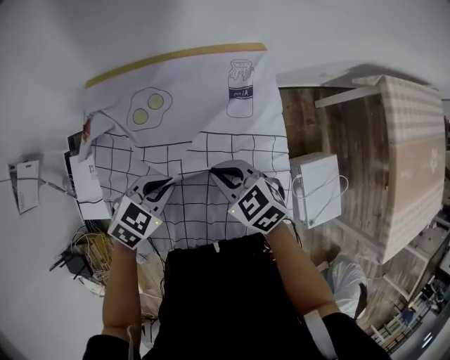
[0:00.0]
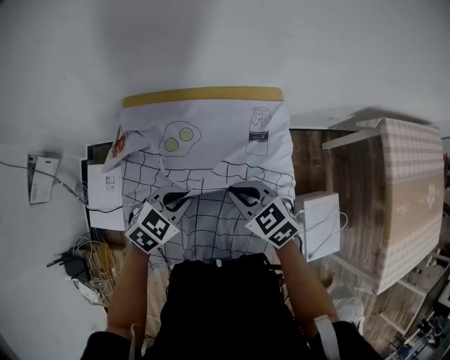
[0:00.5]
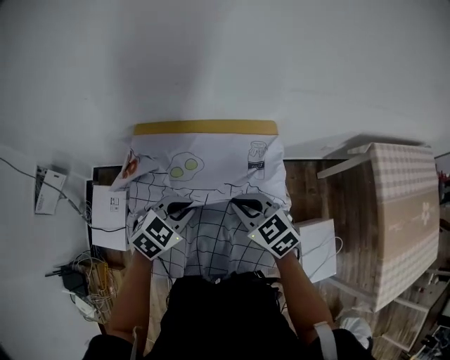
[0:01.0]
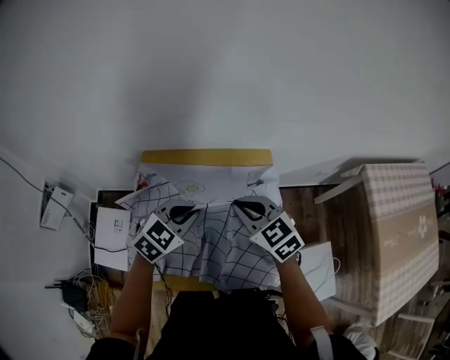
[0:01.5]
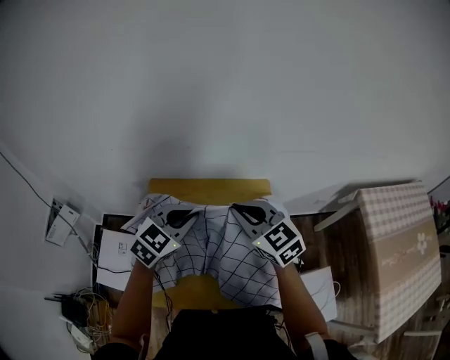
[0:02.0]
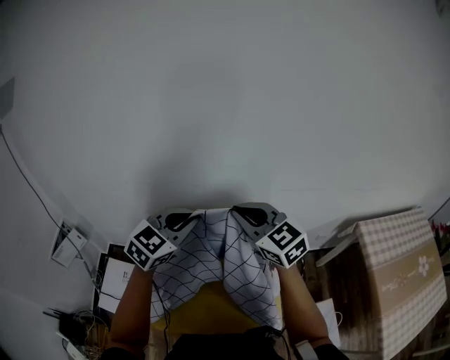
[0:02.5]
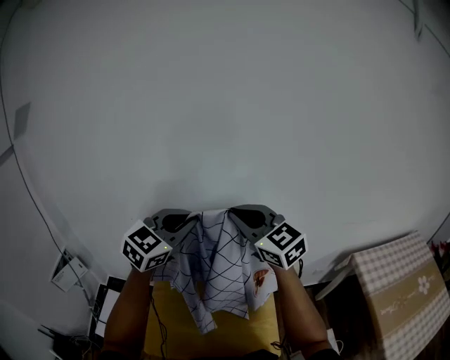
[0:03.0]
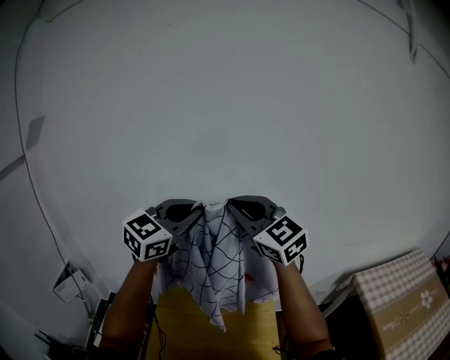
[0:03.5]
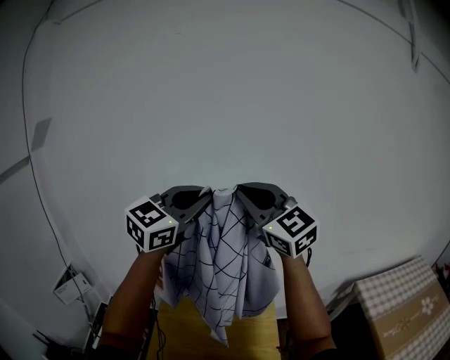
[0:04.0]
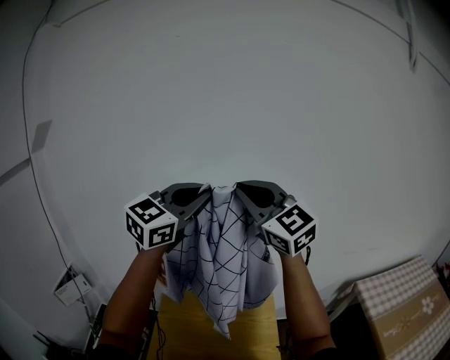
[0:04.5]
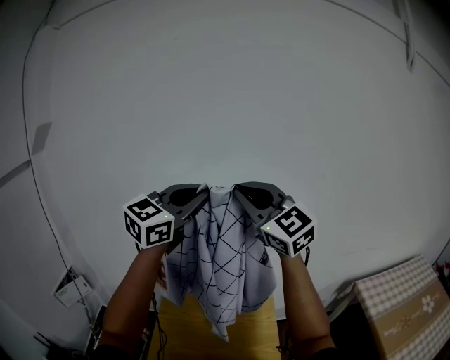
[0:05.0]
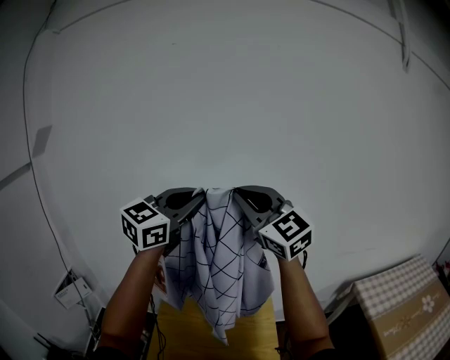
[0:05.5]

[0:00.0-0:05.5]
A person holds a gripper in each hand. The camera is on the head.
0:00.0 to 0:02.0: The grippers both shift upward by approximately 25 cm. The right gripper turns by some 30 degrees. The left gripper turns by some 30 degrees.
0:02.0 to 0:03.5: The grippers both shift upward by roughly 35 cm. The right gripper turns by roughly 30 degrees; the left gripper turns by some 30 degrees.
0:03.5 to 0:05.5: The grippers both shift upward by roughly 10 cm.

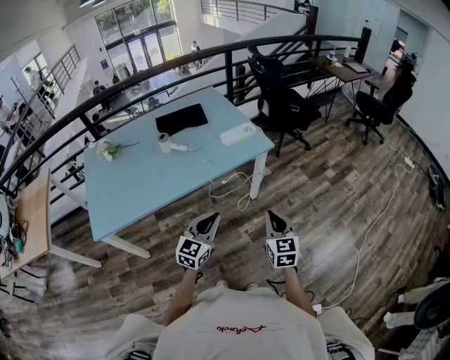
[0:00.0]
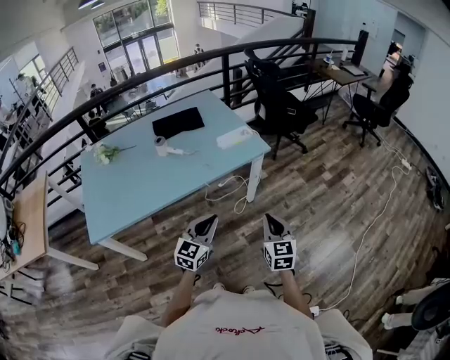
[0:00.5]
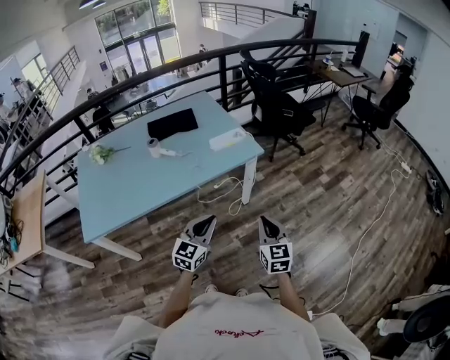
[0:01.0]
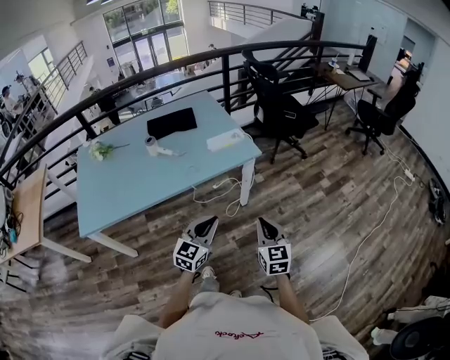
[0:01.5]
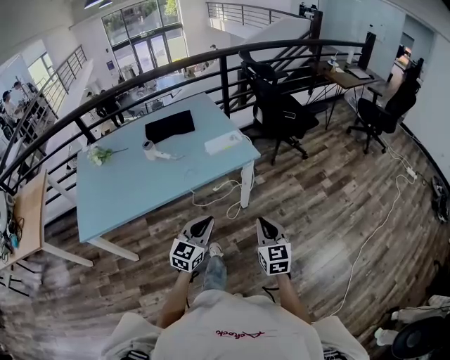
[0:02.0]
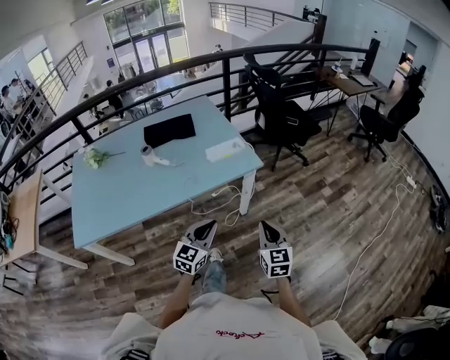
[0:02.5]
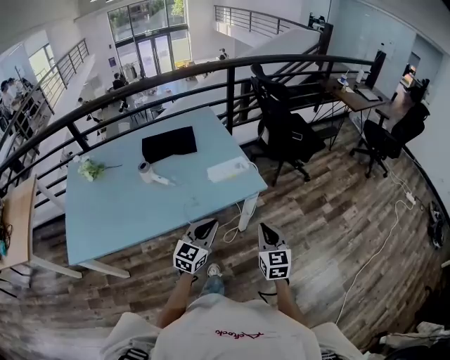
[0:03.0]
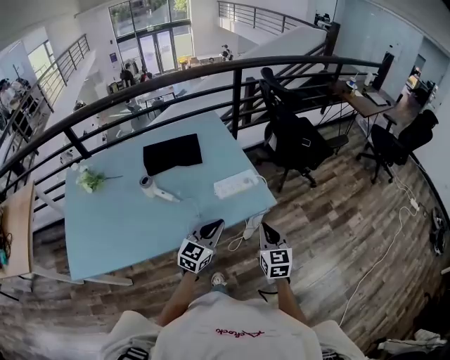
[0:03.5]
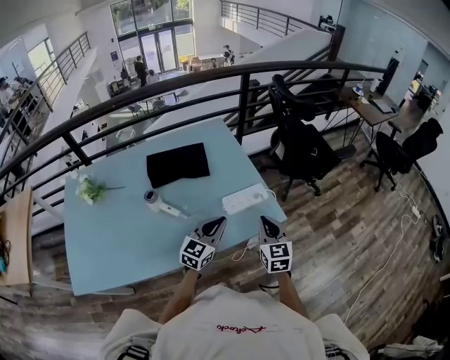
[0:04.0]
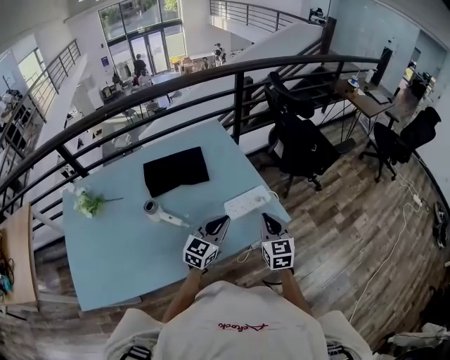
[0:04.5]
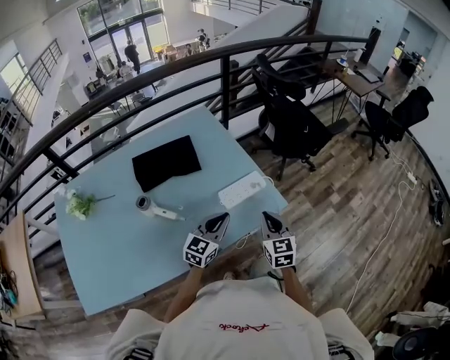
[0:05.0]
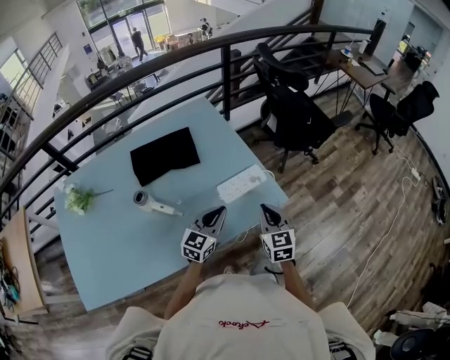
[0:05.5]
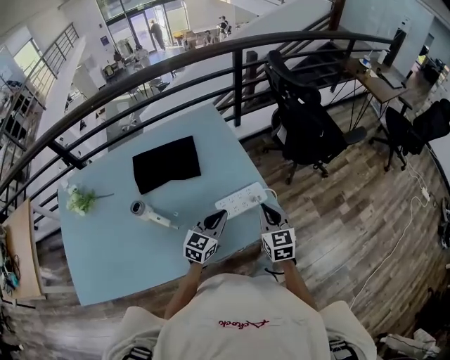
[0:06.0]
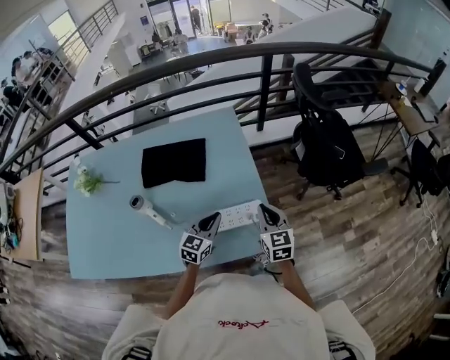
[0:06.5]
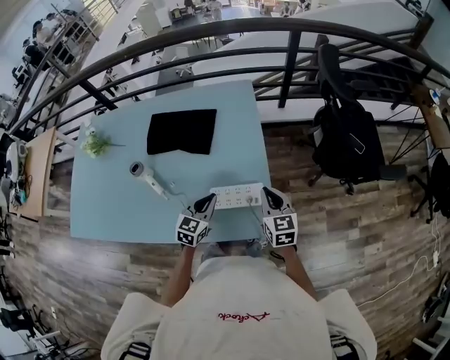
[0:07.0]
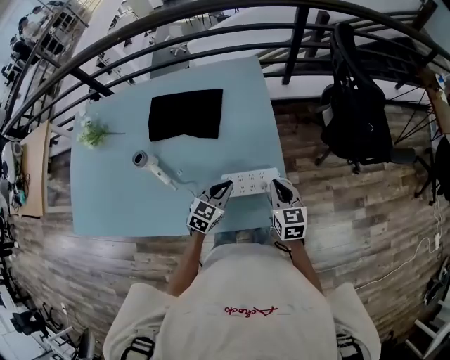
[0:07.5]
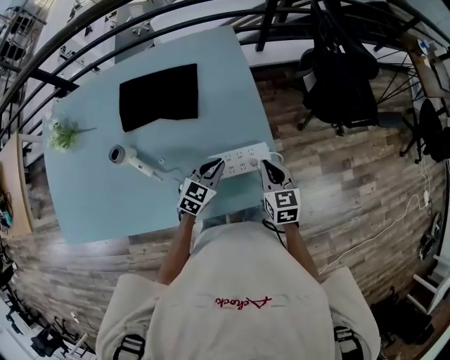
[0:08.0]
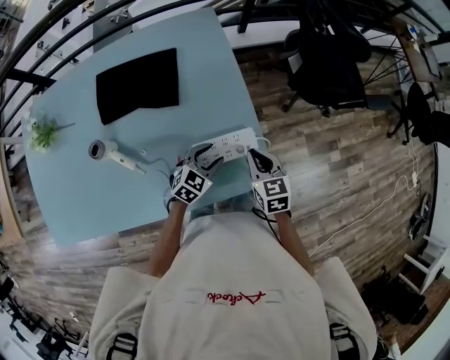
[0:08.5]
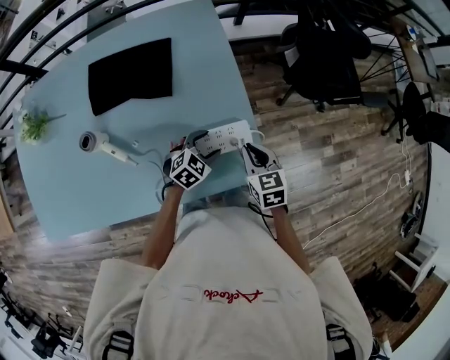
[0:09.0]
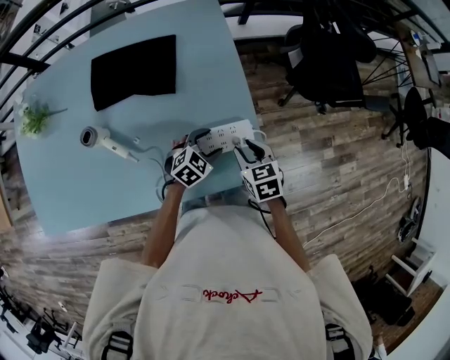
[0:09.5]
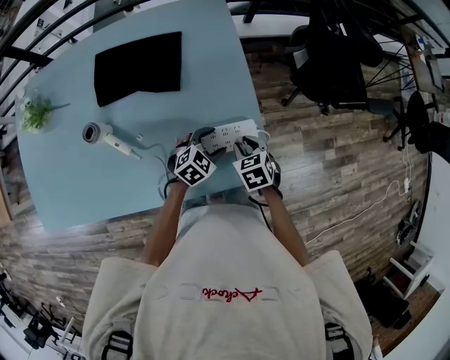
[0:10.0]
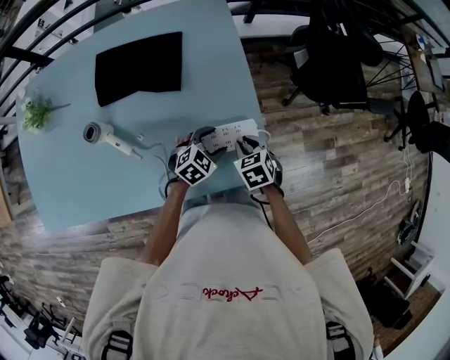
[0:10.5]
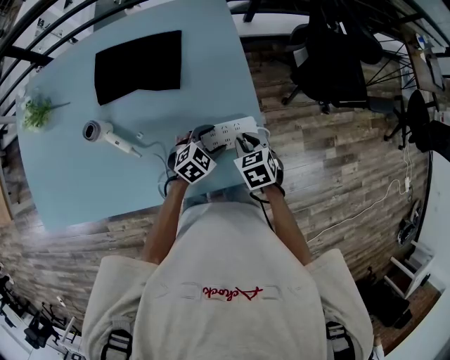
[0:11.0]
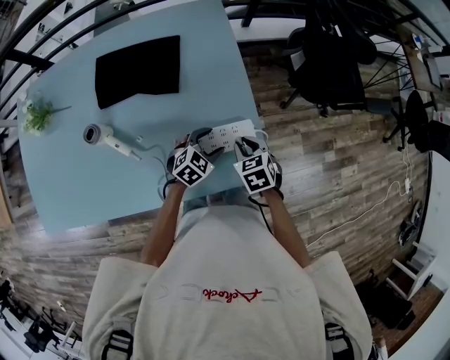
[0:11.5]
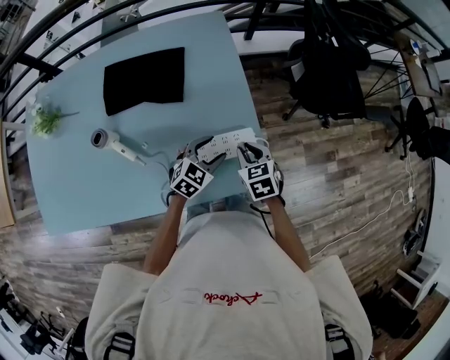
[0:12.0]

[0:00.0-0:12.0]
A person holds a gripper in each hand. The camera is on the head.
0:00.0 to 0:02.0: Both grippers move to the right, some 10 cm.
0:02.0 to 0:04.0: The left gripper is displaced forward by roughly 35 cm. The right gripper shifts about 40 cm forward and to the left.
0:04.0 to 0:06.0: Both grippers move forward and downward, about 15 cm.
0:06.0 to 0:08.0: The right gripper goes about 15 cm forward and downward; the left gripper travels downward and forward by approximately 15 cm.
0:08.0 to 0:10.0: The left gripper moves downward and to the right, some 5 cm, rotates some 20 degrees, and opens; the right gripper heads downward, covering some 10 cm, changes its angle by about 30 degrees, and opens its fingers.
0:10.0 to 0:12.0: The left gripper shifts approximately 5 cm upward.

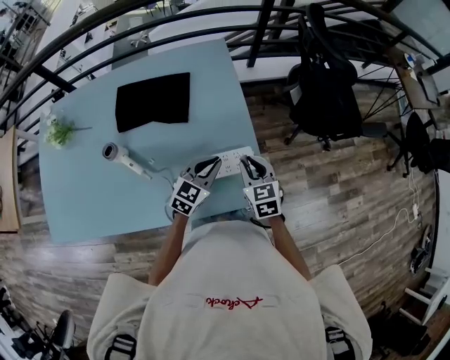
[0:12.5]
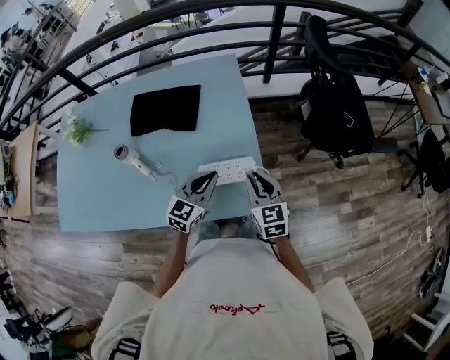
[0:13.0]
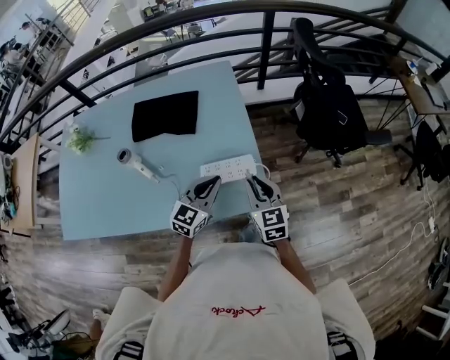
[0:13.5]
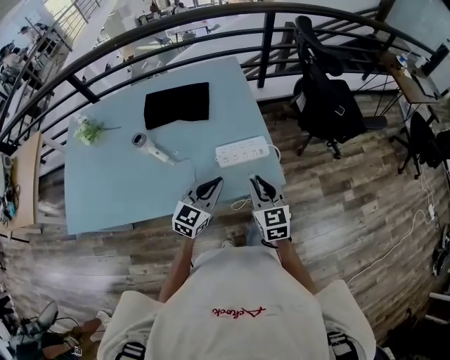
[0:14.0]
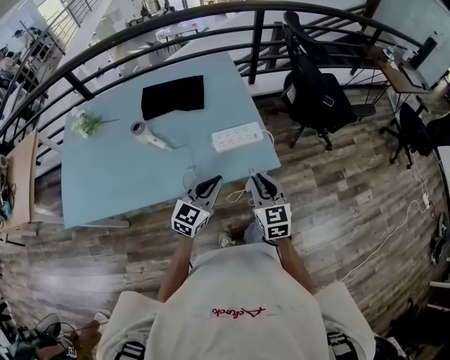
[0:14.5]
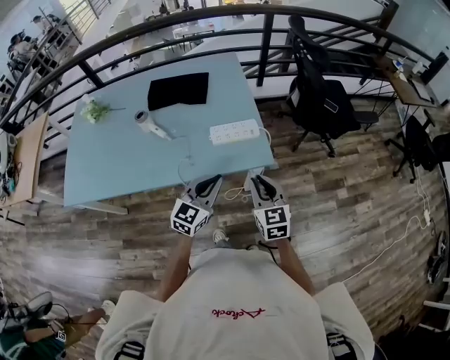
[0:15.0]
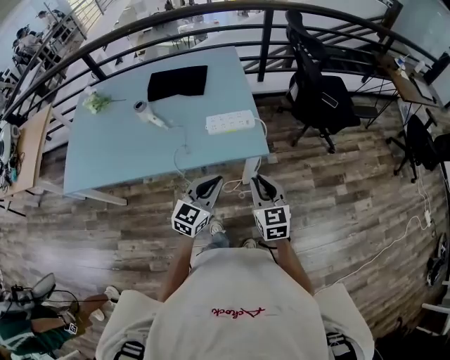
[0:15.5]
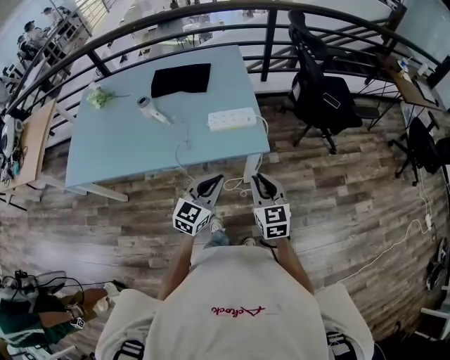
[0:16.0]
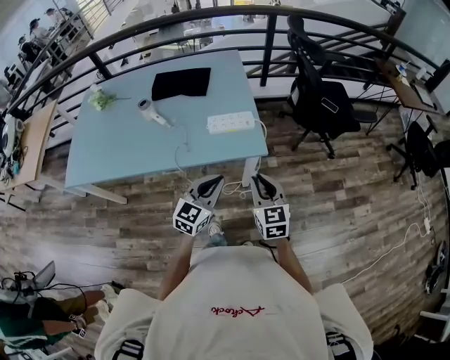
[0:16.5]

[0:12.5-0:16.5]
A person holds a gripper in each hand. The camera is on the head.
0:12.5 to 0:14.5: The two grippers go roughly 25 cm backward.
0:14.5 to 0:16.5: The left gripper heads backward and to the right, covering approximately 15 cm; the right gripper moves to the right and backward, roughly 15 cm.

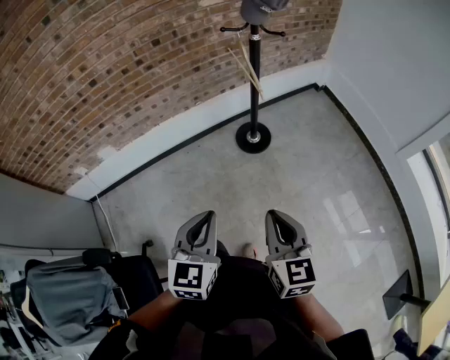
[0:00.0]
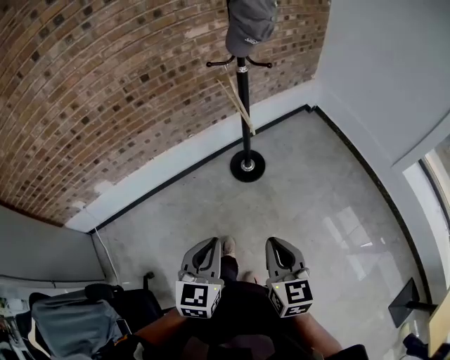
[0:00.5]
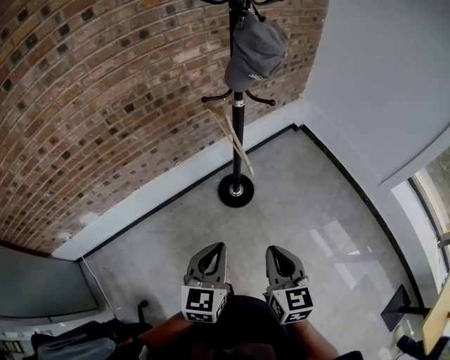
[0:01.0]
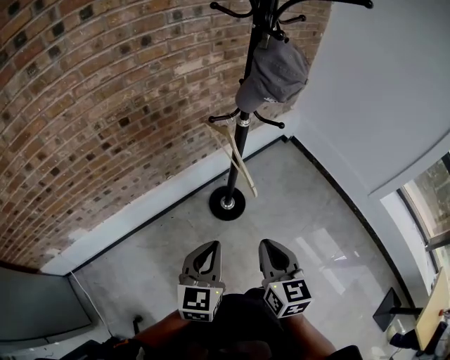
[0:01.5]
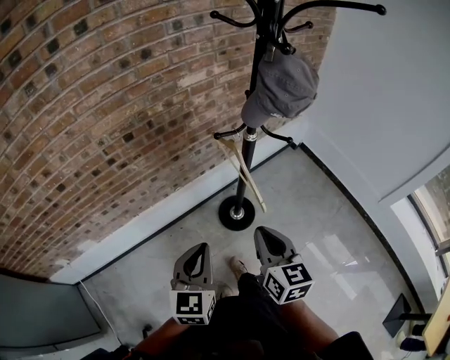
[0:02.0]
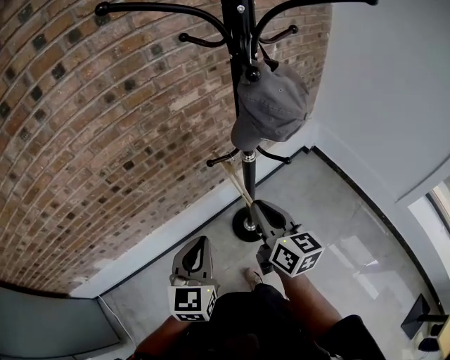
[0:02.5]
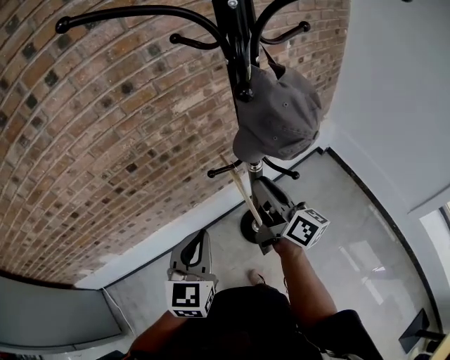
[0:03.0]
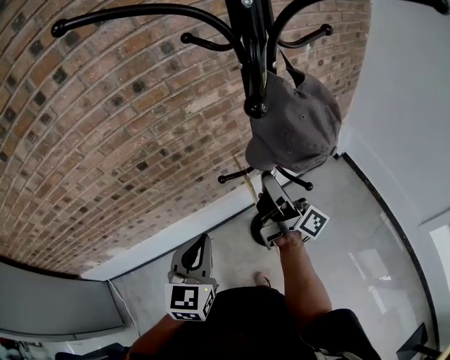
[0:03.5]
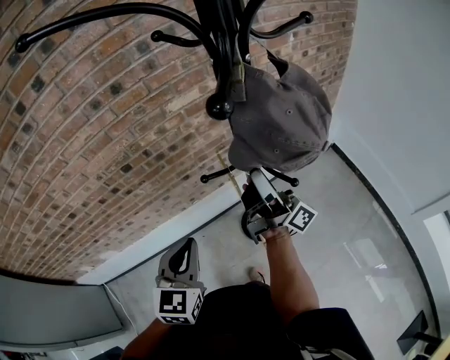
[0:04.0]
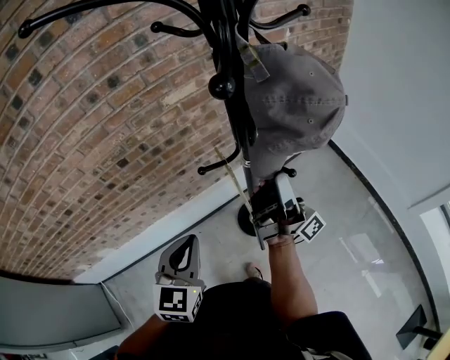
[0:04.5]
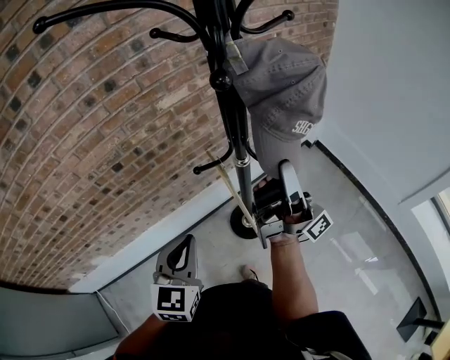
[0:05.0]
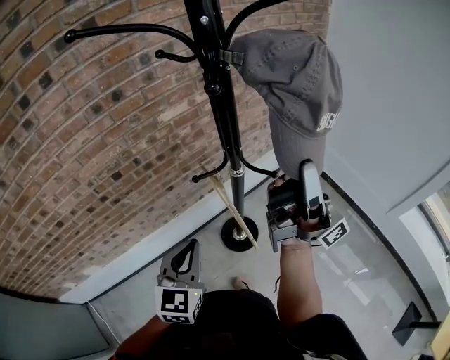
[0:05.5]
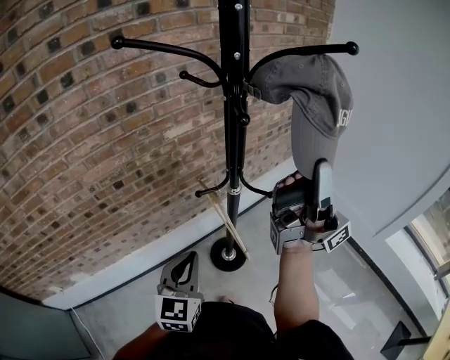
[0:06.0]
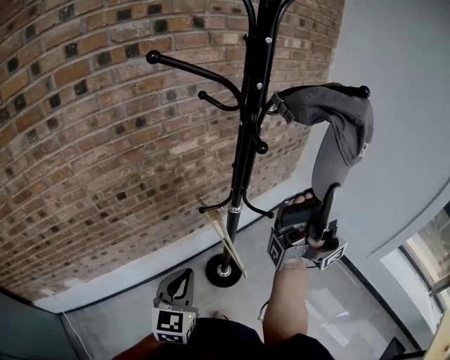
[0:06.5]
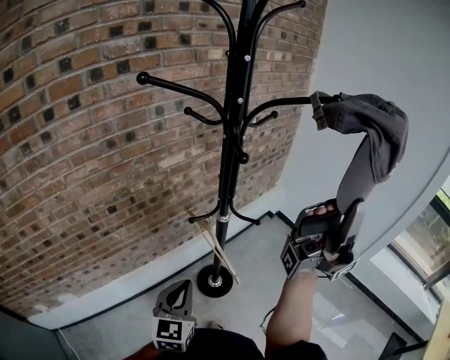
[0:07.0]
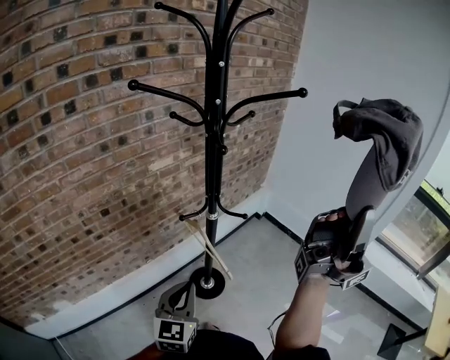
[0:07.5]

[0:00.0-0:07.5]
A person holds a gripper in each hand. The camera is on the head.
0:00.0 to 0:02.0: Both grippers travel together forward, about 35 cm.
0:02.0 to 0:04.0: The left gripper shifts approximately 15 cm forward; the right gripper heads forward, covering about 30 cm, angles its fingers upward, by roughly 60 degrees, and opens its fingers.
0:04.0 to 0:05.5: The right gripper shifts approximately 25 cm upward, backward and to the right, swivels approximately 30 degrees, and closes its fingers.
0:05.5 to 0:07.5: The right gripper ends up approximately 25 cm from where it was, and turns by some 30 degrees. The left gripper shifts by roughly 10 cm.
